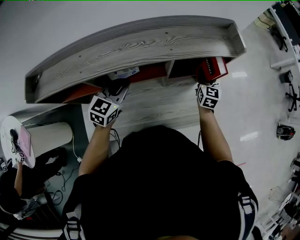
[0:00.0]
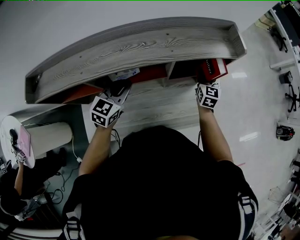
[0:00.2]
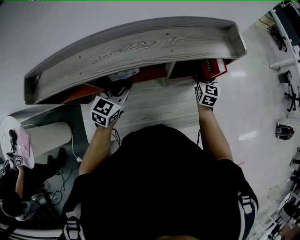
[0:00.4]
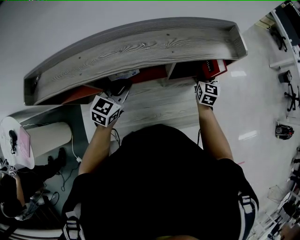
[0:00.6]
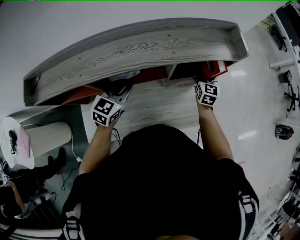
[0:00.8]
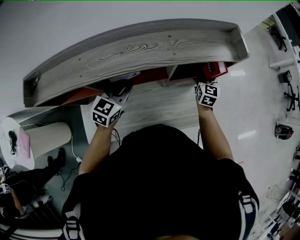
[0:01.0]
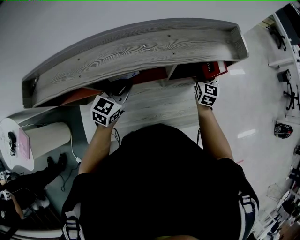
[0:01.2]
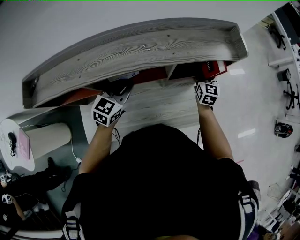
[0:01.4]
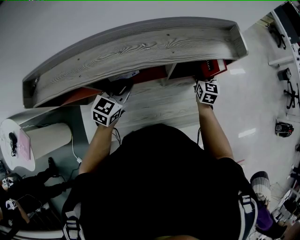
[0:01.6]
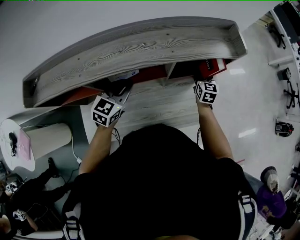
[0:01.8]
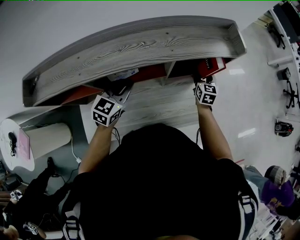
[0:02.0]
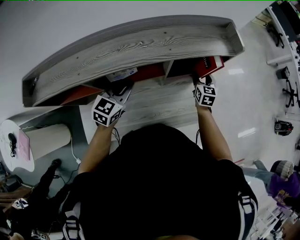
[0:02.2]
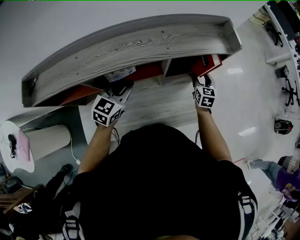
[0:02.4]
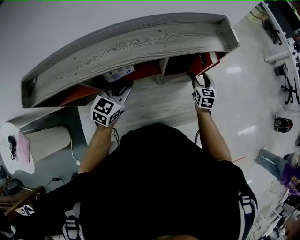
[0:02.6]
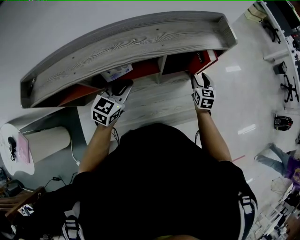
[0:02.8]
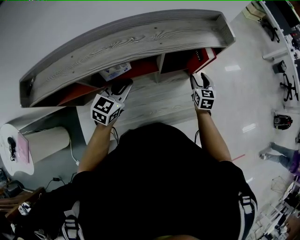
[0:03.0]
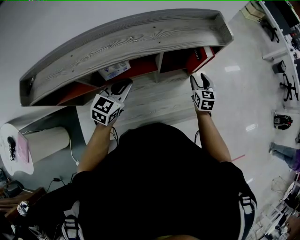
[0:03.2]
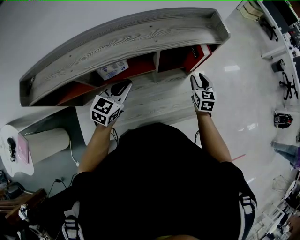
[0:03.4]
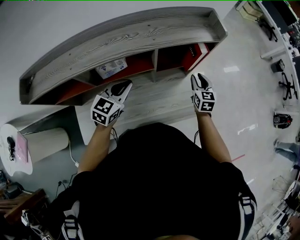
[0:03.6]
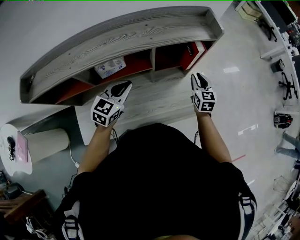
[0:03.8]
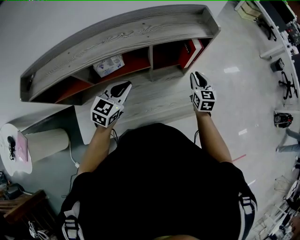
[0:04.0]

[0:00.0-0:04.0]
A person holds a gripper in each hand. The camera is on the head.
0:00.0 to 0:01.4: The grippers stay close to where they were, moving slightly.
0:01.4 to 0:02.6: The right gripper is displaced downward by about 5 cm.
0:02.6 to 0:04.0: The left gripper shifts about 5 cm to the right. Meanwhile the right gripper travels backward and upward by about 10 cm, and closes up.

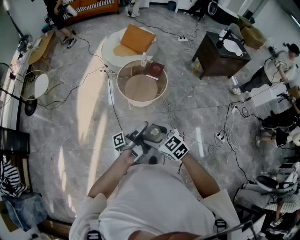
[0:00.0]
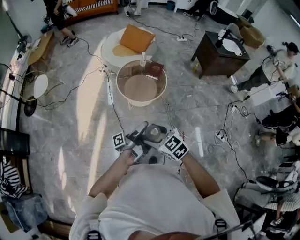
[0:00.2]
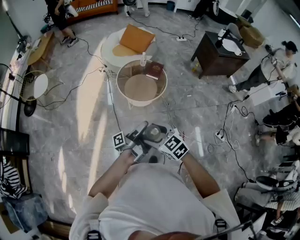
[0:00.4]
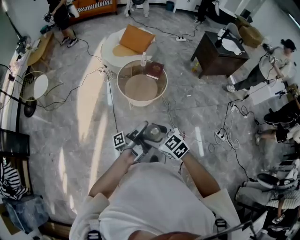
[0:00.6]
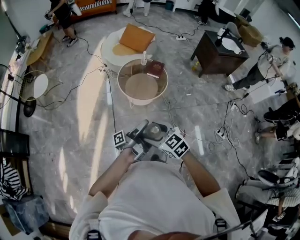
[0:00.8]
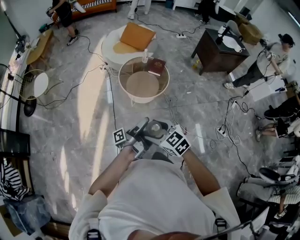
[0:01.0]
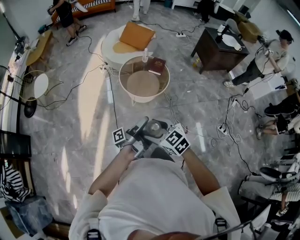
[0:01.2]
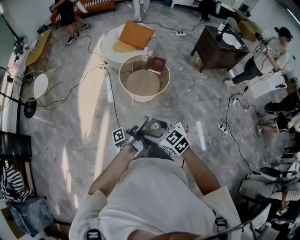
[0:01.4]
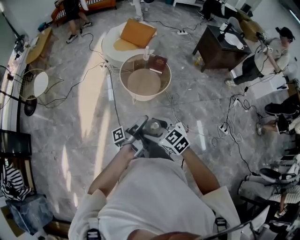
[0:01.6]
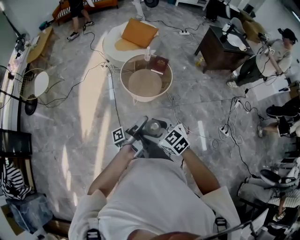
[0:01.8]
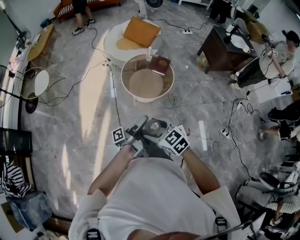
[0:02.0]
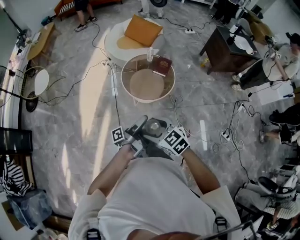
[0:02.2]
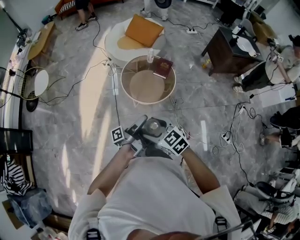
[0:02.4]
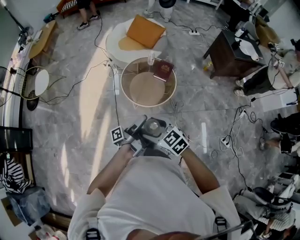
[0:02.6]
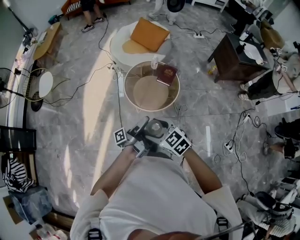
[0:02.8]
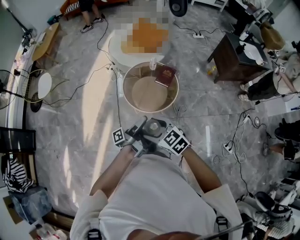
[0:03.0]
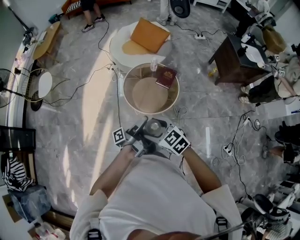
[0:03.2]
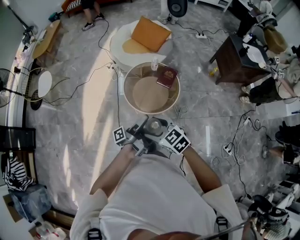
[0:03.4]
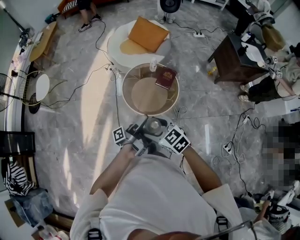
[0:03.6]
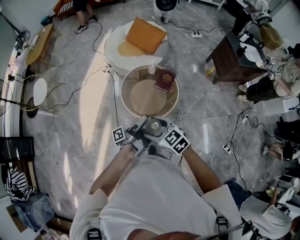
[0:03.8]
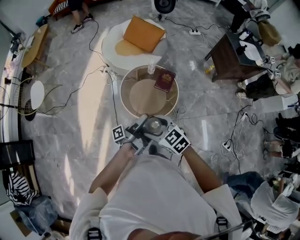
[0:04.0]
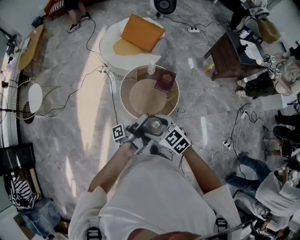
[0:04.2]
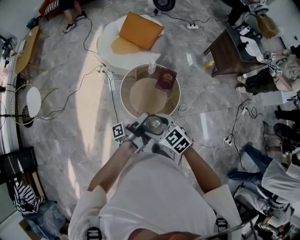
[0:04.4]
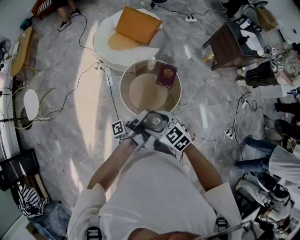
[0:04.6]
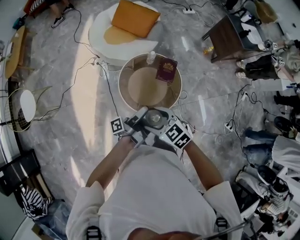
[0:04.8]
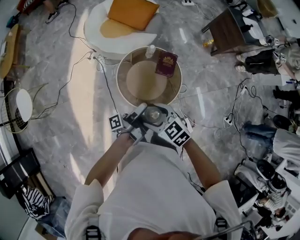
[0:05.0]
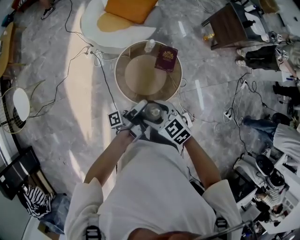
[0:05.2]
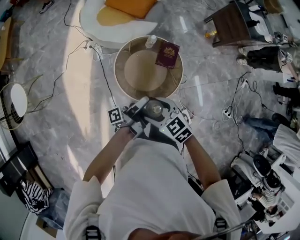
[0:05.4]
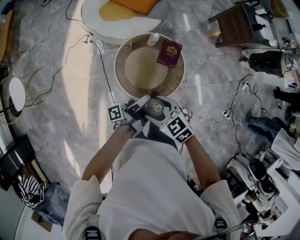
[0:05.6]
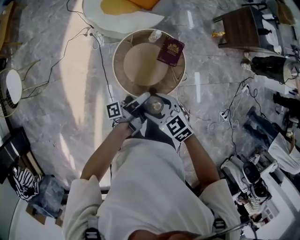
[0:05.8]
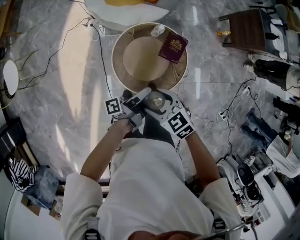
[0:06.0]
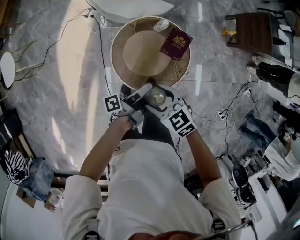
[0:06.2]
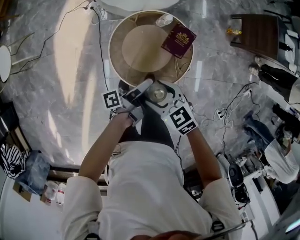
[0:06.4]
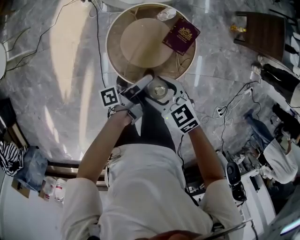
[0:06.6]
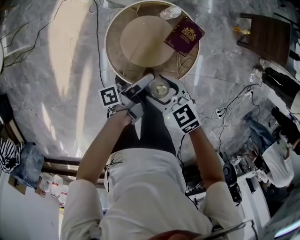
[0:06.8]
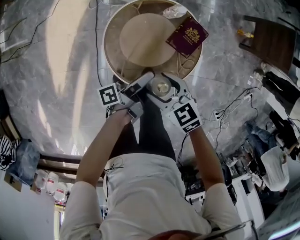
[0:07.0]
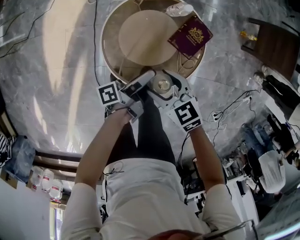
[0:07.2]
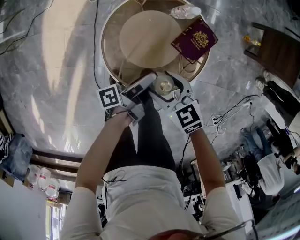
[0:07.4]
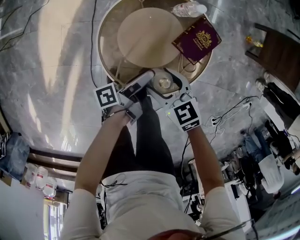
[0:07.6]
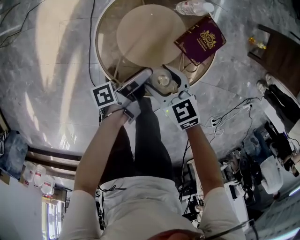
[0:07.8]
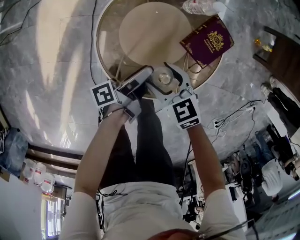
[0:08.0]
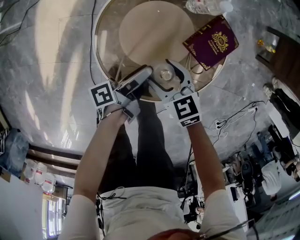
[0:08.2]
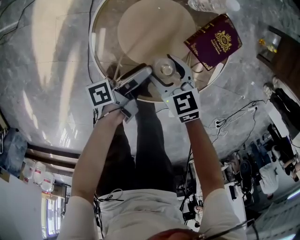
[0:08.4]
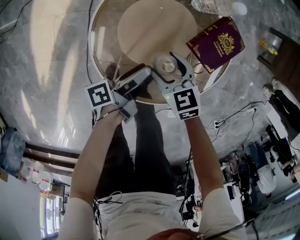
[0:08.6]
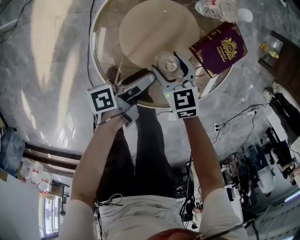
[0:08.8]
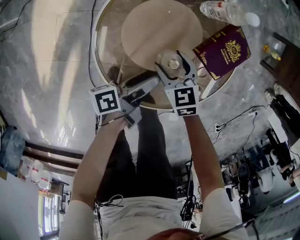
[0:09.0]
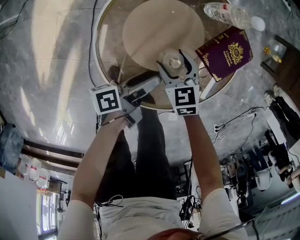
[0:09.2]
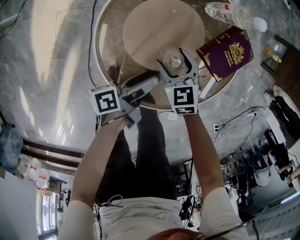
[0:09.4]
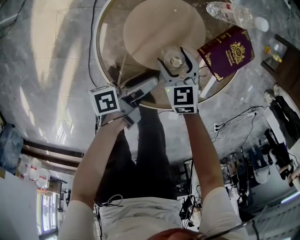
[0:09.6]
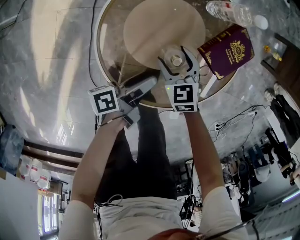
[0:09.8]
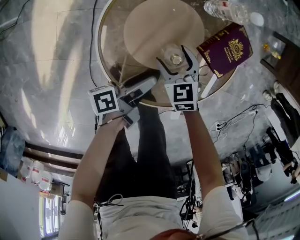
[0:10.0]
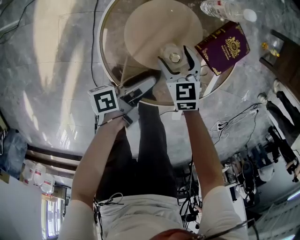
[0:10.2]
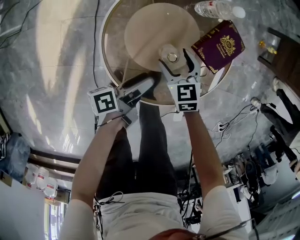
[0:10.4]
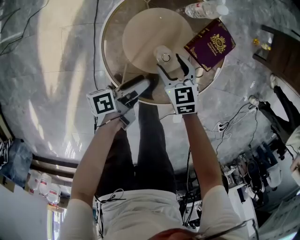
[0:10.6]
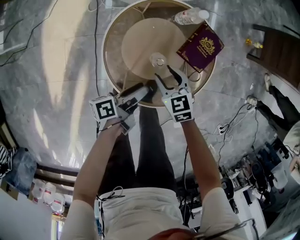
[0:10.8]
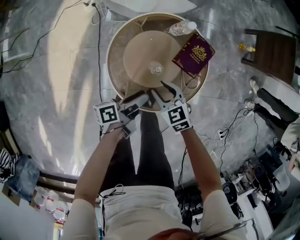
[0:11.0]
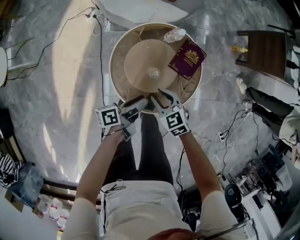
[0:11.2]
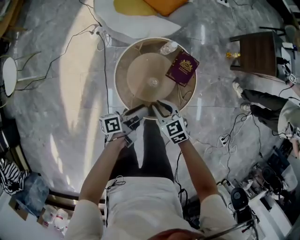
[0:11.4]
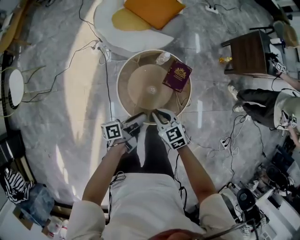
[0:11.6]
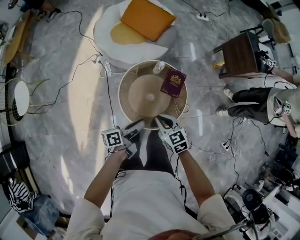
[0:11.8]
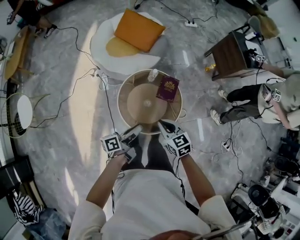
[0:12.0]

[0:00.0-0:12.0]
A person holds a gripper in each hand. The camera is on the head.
0:00.0 to 0:01.6: The right gripper shifts by approximately 5 cm.
0:01.6 to 0:03.0: The right gripper shifts by roughly 25 cm.
0:03.0 to 0:04.4: The right gripper shifts by roughly 25 cm.
0:04.4 to 0:06.0: The right gripper is displaced downward by some 15 cm.
0:06.0 to 0:07.6: The right gripper goes roughly 30 cm downward.
0:07.6 to 0:09.0: The right gripper moves downward, about 20 cm.
0:10.4 to 0:12.0: The right gripper heads upward, covering about 50 cm, and closes.

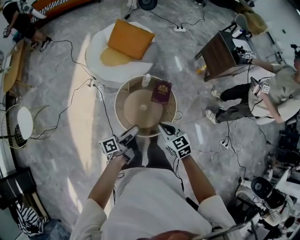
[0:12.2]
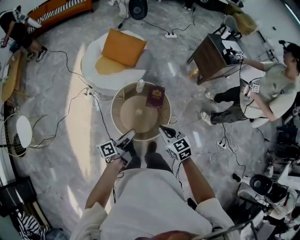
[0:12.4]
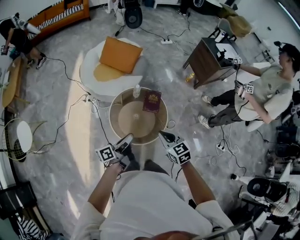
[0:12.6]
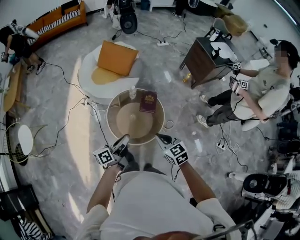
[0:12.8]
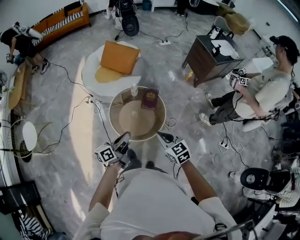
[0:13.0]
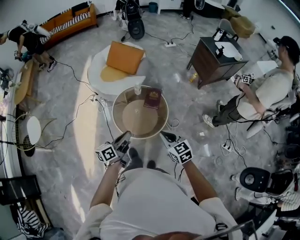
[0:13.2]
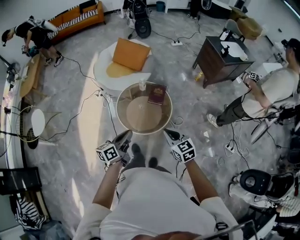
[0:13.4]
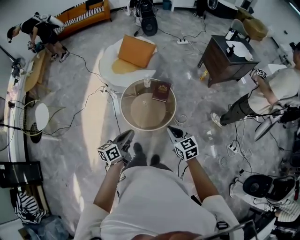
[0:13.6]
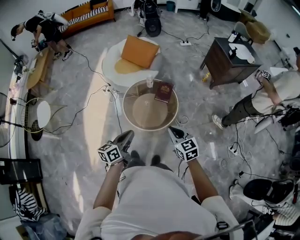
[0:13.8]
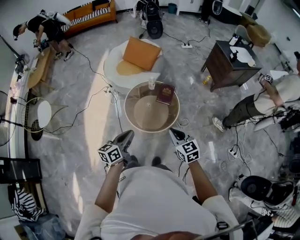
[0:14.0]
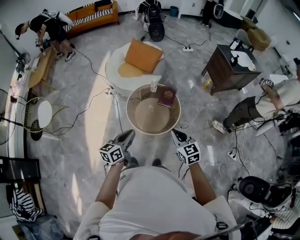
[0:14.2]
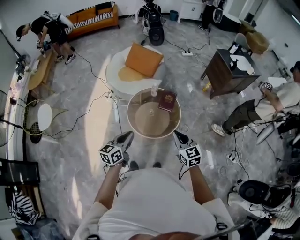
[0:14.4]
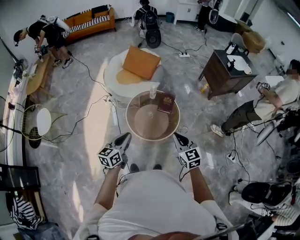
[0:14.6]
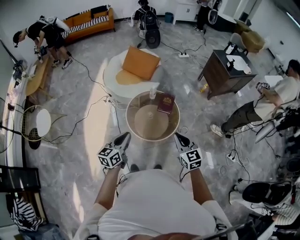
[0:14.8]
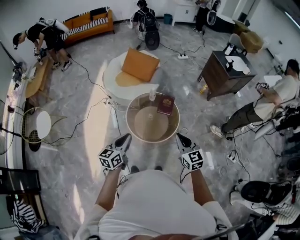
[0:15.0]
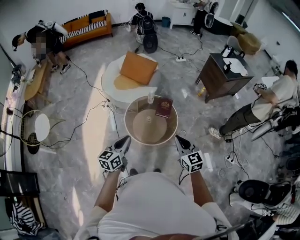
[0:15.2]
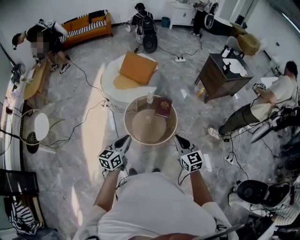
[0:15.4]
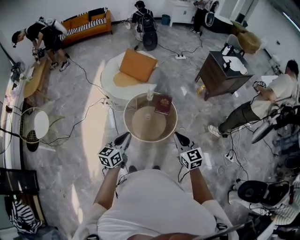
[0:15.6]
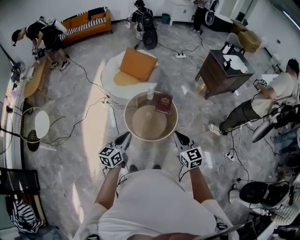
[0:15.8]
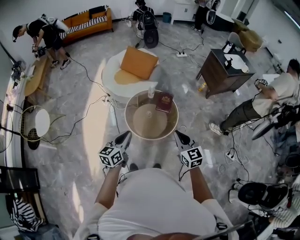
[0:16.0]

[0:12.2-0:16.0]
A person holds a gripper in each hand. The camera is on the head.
0:12.2 to 0:13.4: The right gripper shifts by roughly 25 cm.
0:13.4 to 0:14.8: The right gripper travels upward by approximately 5 cm.

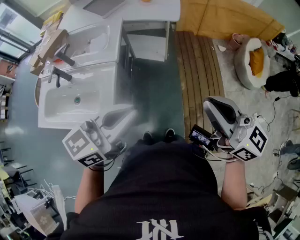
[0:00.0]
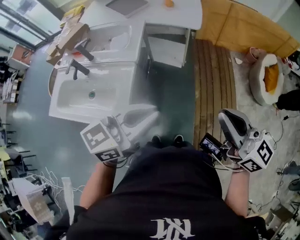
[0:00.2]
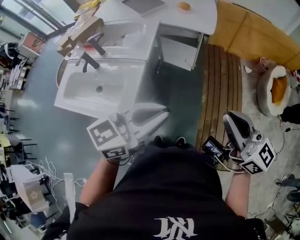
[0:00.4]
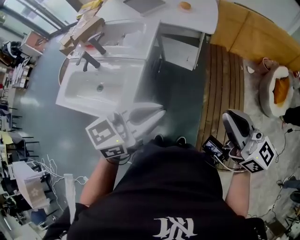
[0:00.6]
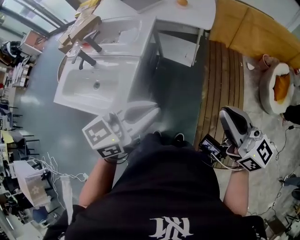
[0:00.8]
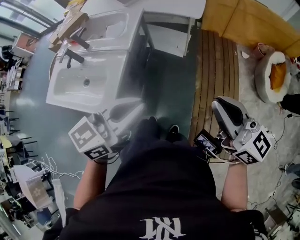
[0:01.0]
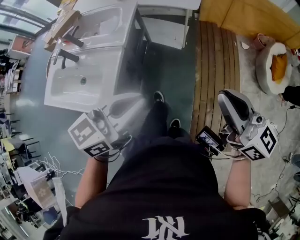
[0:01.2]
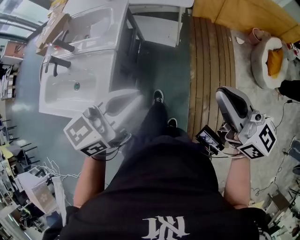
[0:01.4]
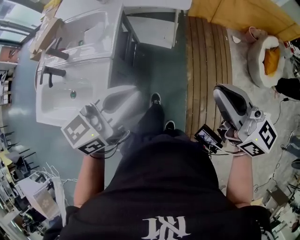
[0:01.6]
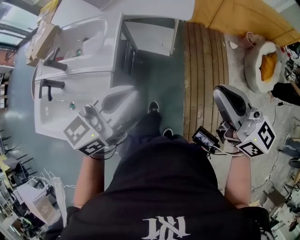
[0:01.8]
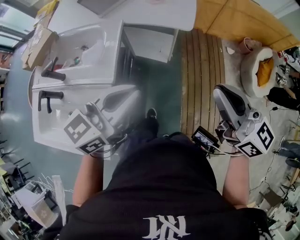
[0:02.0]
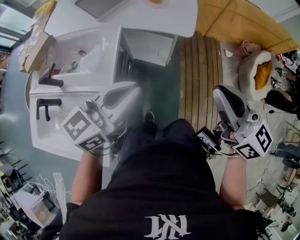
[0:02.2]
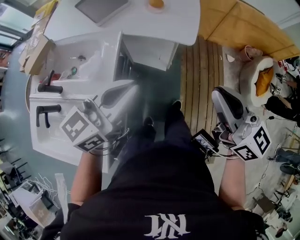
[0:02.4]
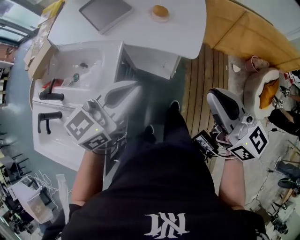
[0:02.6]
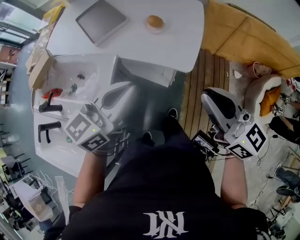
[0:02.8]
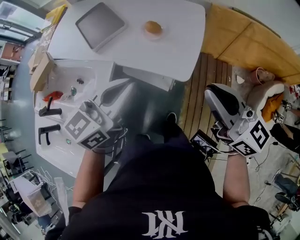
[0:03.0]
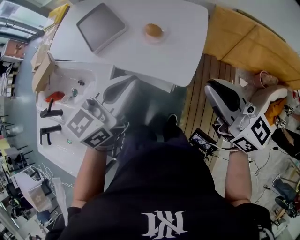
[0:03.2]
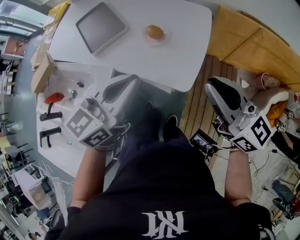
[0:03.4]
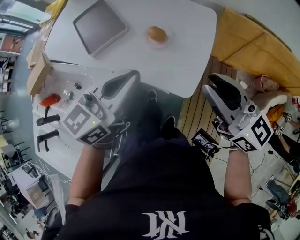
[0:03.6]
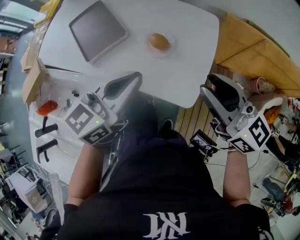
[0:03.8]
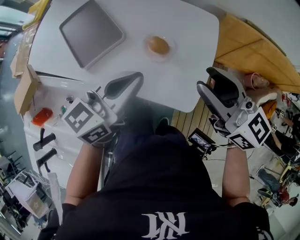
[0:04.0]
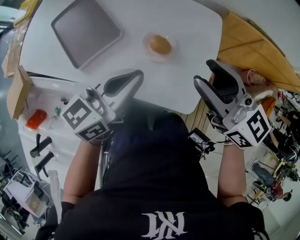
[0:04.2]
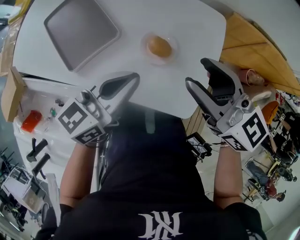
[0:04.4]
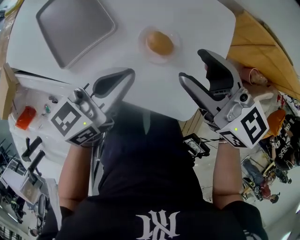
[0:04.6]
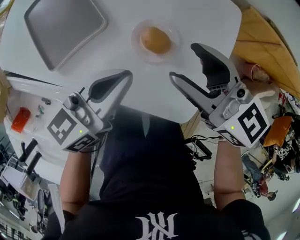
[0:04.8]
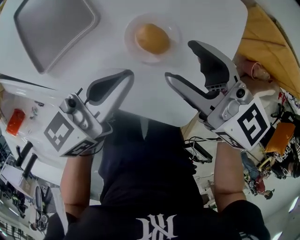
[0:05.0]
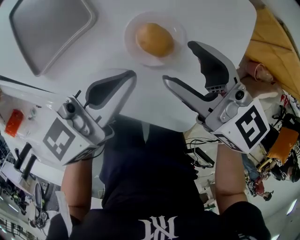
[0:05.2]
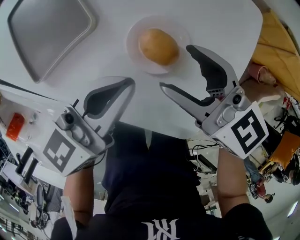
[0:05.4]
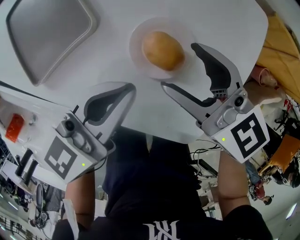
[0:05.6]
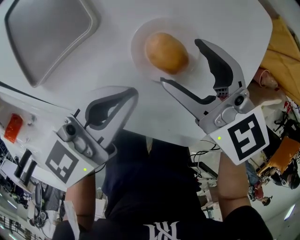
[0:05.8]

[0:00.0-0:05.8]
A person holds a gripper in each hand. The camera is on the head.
0:00.0 to 0:01.4: The left gripper heads forward, to the right and downward, covering approximately 10 cm; the right gripper heads forward and to the right, covering roughly 10 cm.
0:01.4 to 0:02.8: The pair of grippers is taken forward, approximately 50 cm.
0:02.8 to 0:04.4: Both grippers travel together forward, approximately 35 cm. The right gripper opens its fingers.
0:04.4 to 0:05.8: The left gripper moves downward, roughly 15 cm. The right gripper shifts some 20 cm downward, and opens up.
